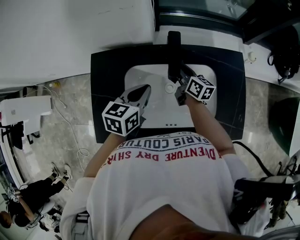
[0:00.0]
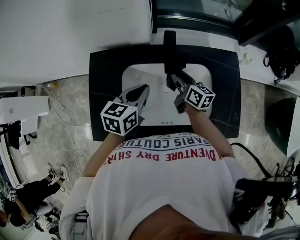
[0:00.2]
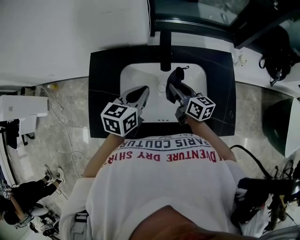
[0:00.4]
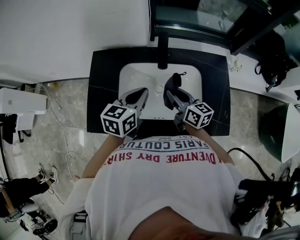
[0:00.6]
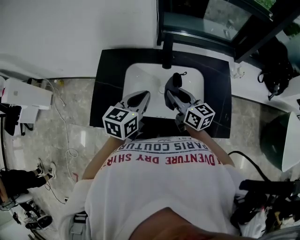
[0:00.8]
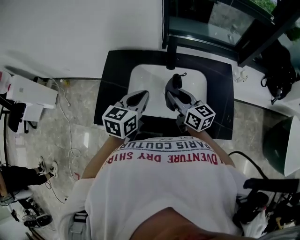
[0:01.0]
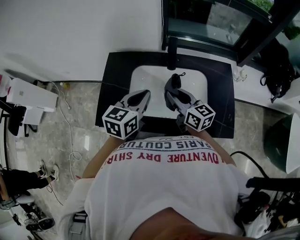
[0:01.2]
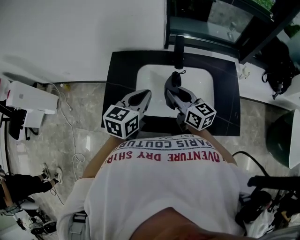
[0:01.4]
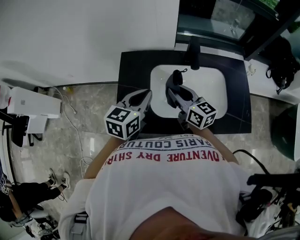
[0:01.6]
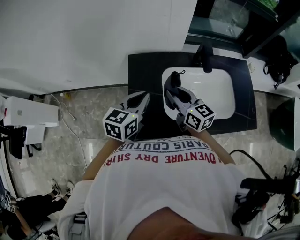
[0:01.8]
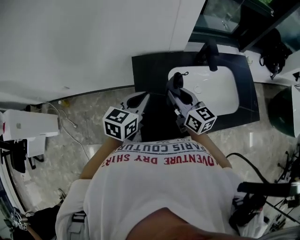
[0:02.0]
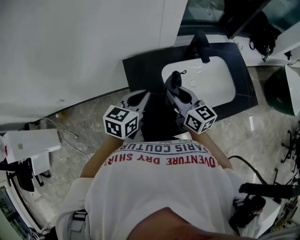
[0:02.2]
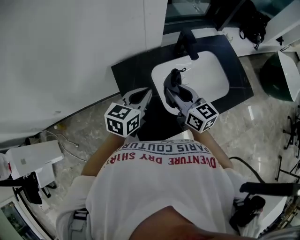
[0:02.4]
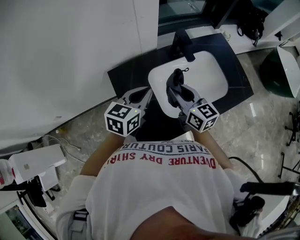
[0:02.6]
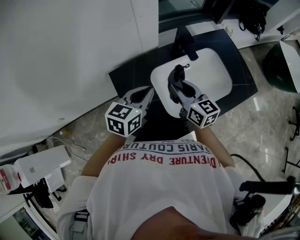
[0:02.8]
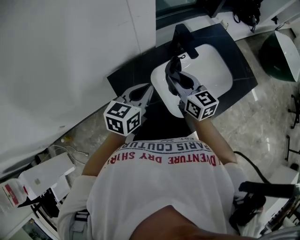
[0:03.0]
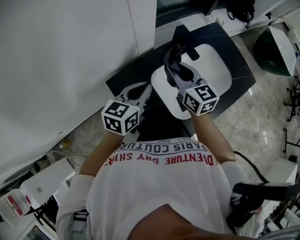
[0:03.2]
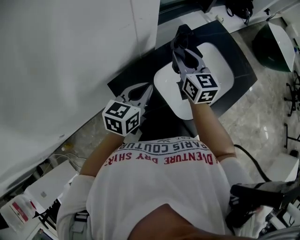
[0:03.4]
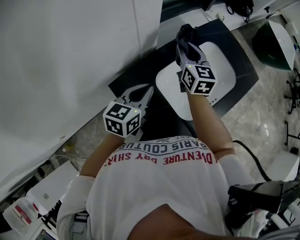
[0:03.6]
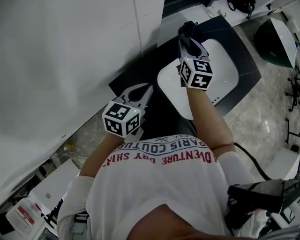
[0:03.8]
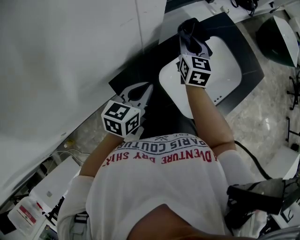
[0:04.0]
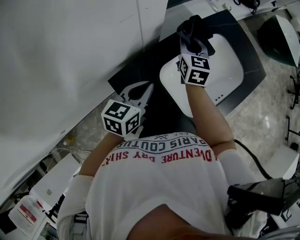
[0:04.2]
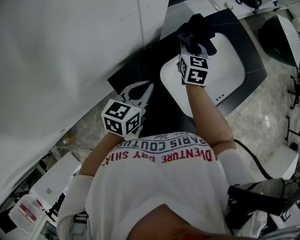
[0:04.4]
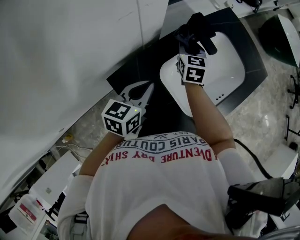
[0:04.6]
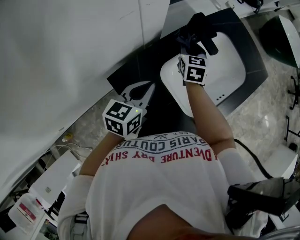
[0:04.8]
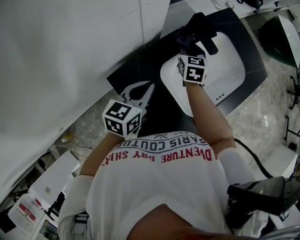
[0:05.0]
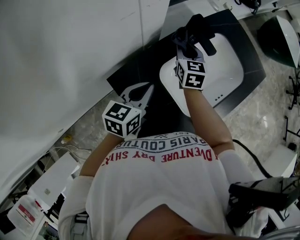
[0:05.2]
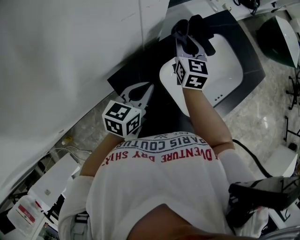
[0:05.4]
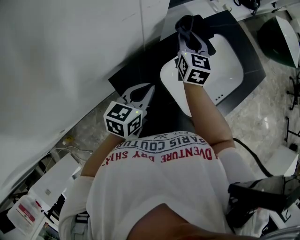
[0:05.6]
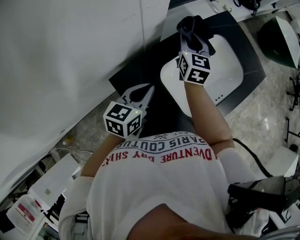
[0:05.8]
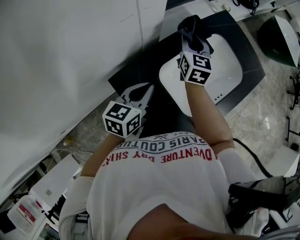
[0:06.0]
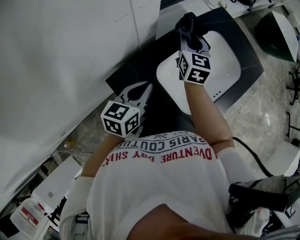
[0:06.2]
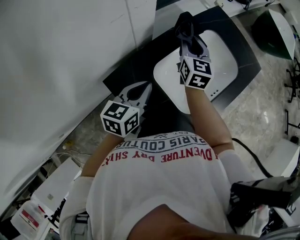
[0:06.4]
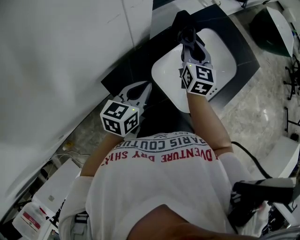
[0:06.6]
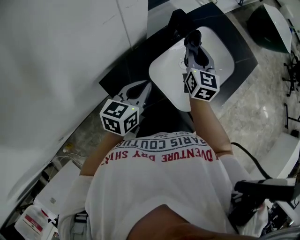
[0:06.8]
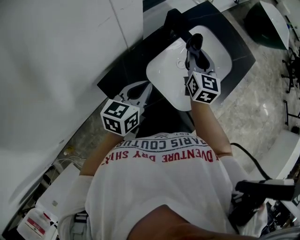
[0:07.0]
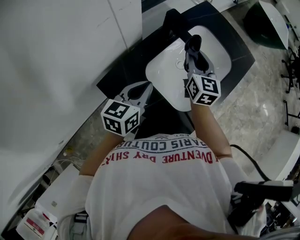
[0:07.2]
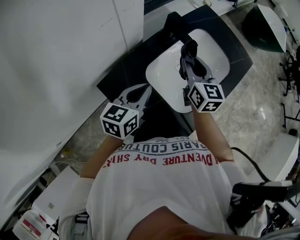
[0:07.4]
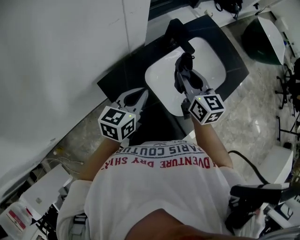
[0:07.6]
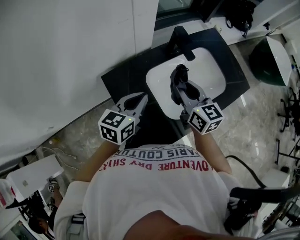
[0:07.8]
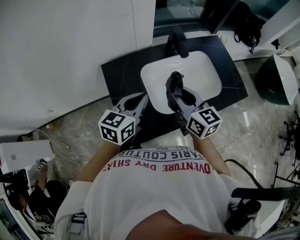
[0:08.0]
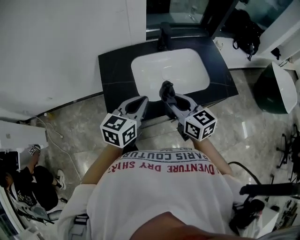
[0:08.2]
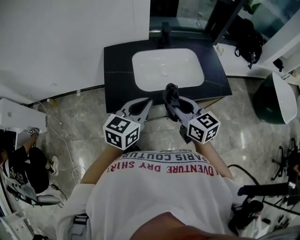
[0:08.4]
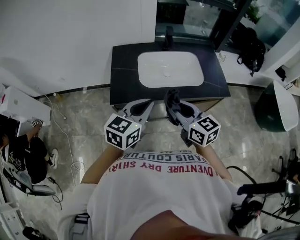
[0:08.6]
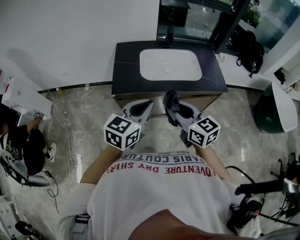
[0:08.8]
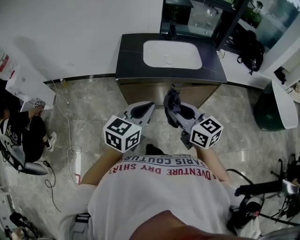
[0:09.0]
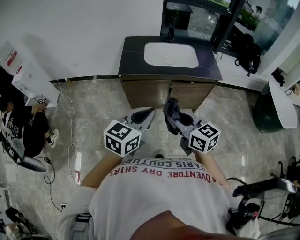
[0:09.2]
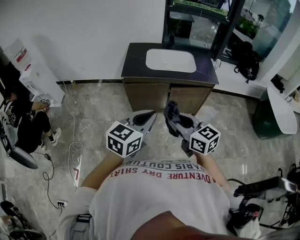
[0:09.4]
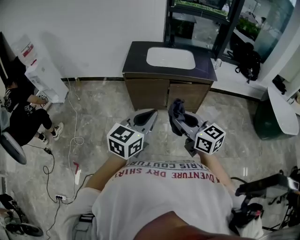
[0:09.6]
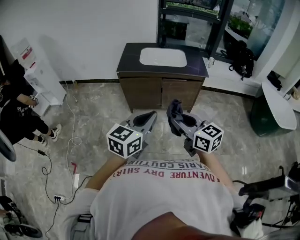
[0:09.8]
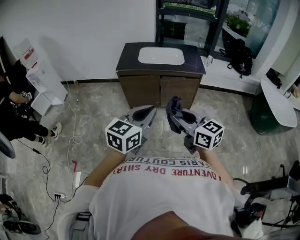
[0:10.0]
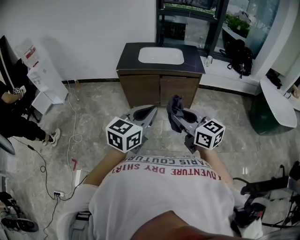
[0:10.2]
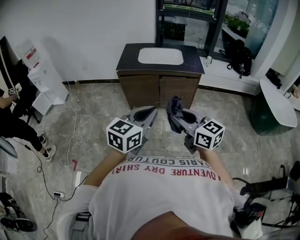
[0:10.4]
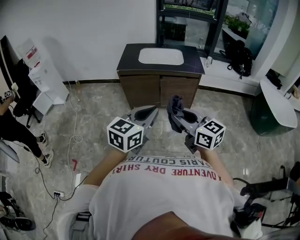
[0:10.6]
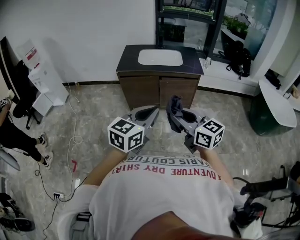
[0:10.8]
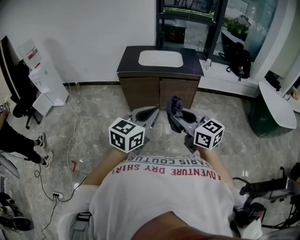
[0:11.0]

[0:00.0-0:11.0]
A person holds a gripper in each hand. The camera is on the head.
0:00.0 to 0:01.6: The left gripper goes some 20 cm to the left, backward and upward. Meanwhile the right gripper goes roughly 30 cm backward, to the left and upward, and swivels roughly 20 degrees.
0:01.6 to 0:03.2: The right gripper shifts by some 15 cm, and rotates some 40 degrees. Meanwhile the left gripper changes place by roughly 15 cm, and rotates about 40 degrees.
0:03.2 to 0:04.8: The right gripper moves downward and forward, about 20 cm, and rotates some 40 degrees. The left gripper goes about 5 cm downward.
0:04.8 to 0:06.2: The right gripper travels upward by roughly 10 cm.
0:06.2 to 0:07.8: The right gripper ends up some 20 cm from where it was, and swivels some 30 degrees, while the left gripper moves some 10 cm.
0:07.8 to 0:09.4: Both grippers are carried about 70 cm. The right gripper swivels some 50 degrees, while the left gripper turns by some 30 degrees.
0:09.4 to 0:11.0: The grippers both shift backward and to the right by approximately 20 cm.

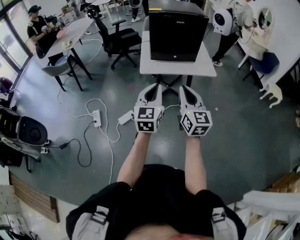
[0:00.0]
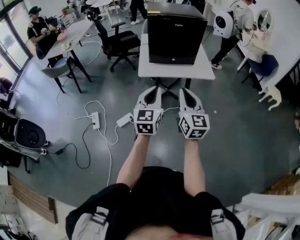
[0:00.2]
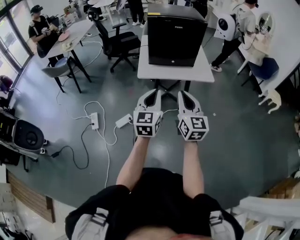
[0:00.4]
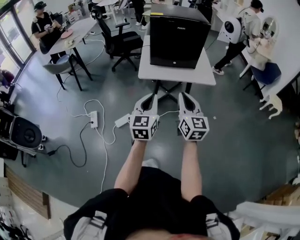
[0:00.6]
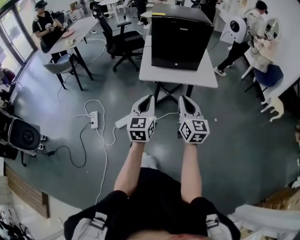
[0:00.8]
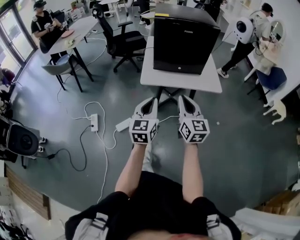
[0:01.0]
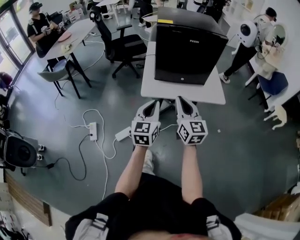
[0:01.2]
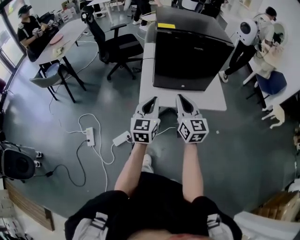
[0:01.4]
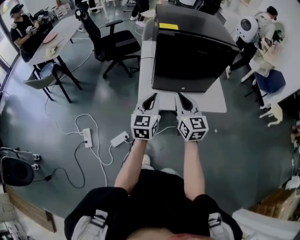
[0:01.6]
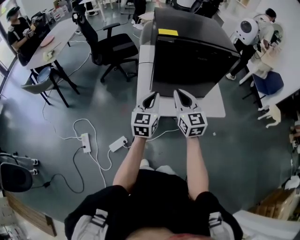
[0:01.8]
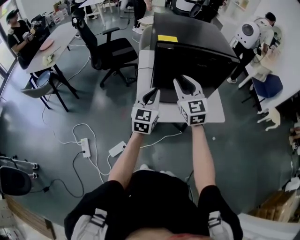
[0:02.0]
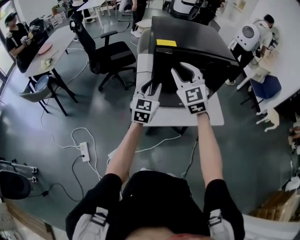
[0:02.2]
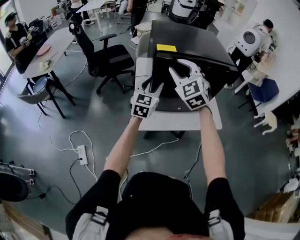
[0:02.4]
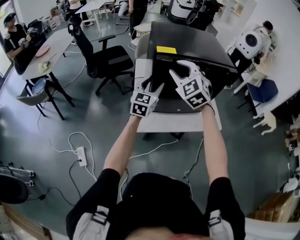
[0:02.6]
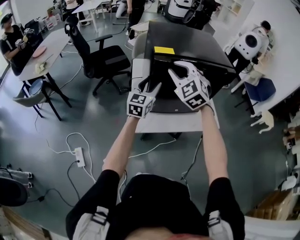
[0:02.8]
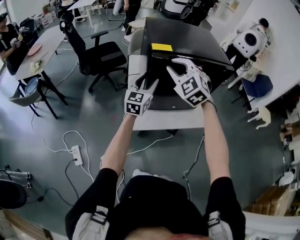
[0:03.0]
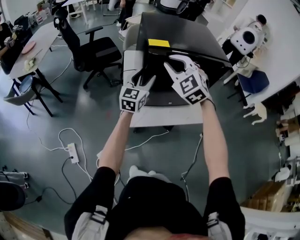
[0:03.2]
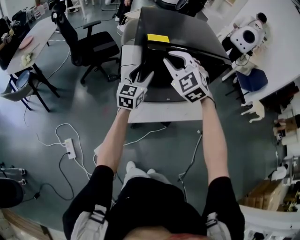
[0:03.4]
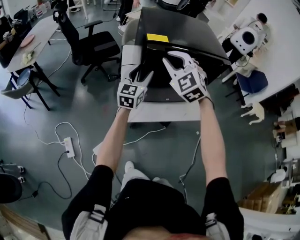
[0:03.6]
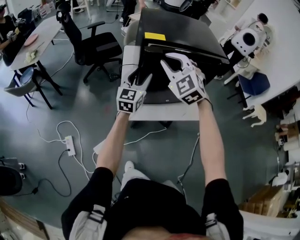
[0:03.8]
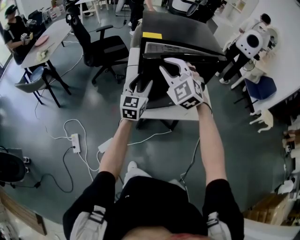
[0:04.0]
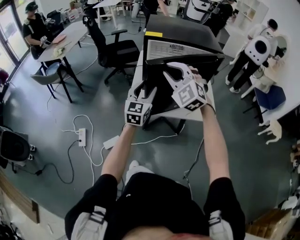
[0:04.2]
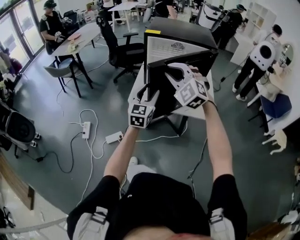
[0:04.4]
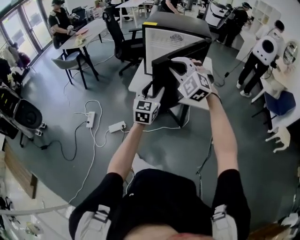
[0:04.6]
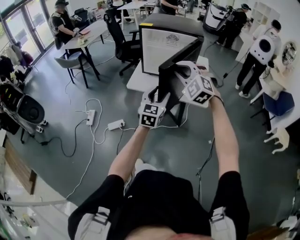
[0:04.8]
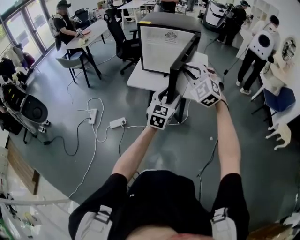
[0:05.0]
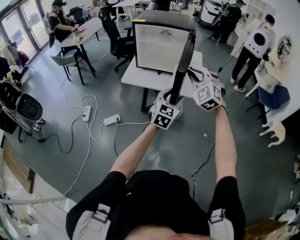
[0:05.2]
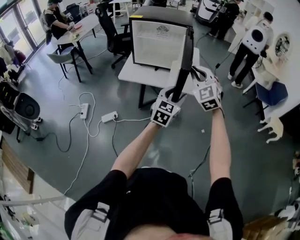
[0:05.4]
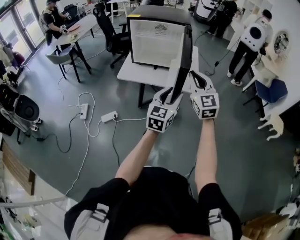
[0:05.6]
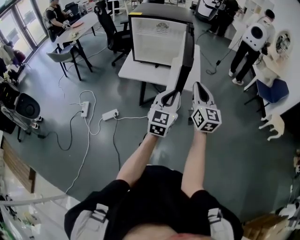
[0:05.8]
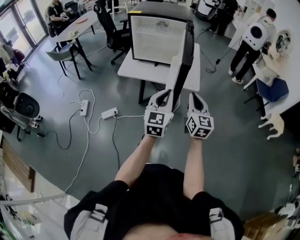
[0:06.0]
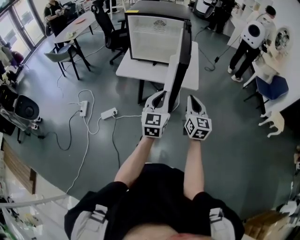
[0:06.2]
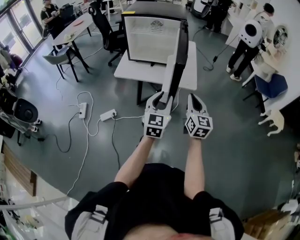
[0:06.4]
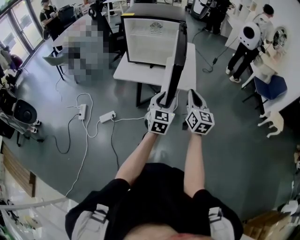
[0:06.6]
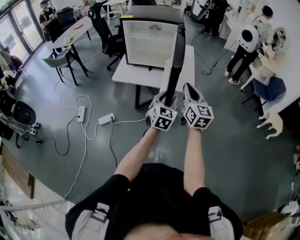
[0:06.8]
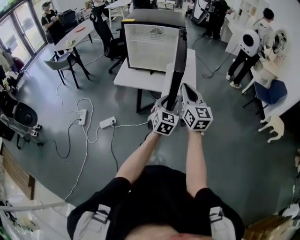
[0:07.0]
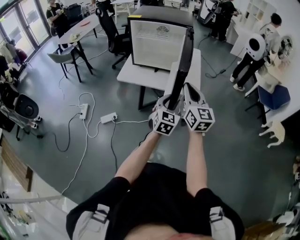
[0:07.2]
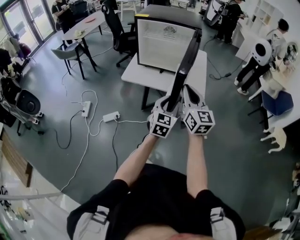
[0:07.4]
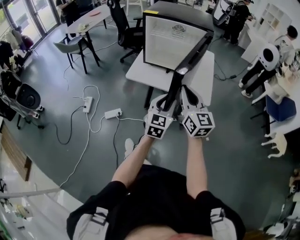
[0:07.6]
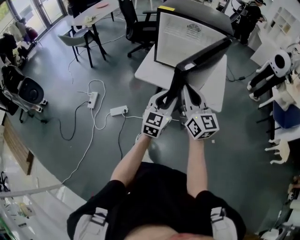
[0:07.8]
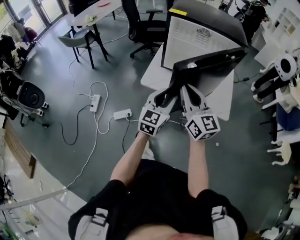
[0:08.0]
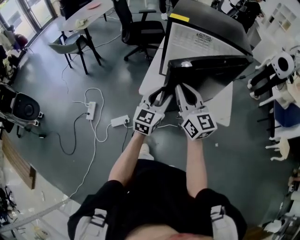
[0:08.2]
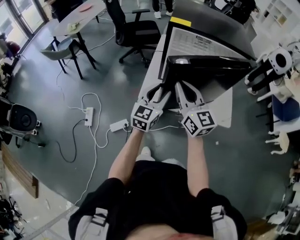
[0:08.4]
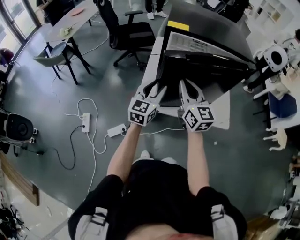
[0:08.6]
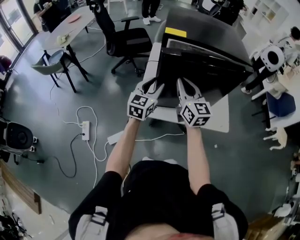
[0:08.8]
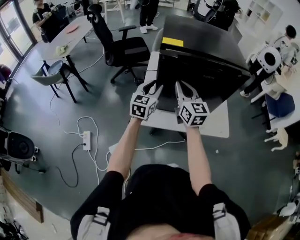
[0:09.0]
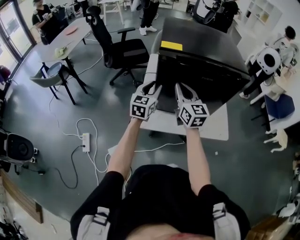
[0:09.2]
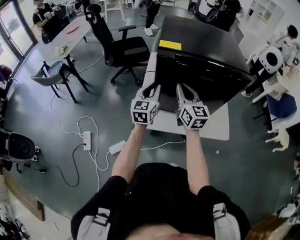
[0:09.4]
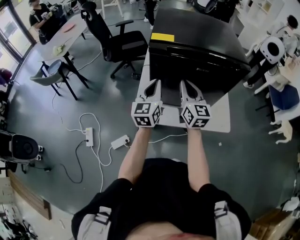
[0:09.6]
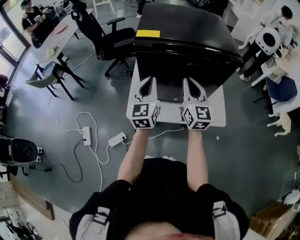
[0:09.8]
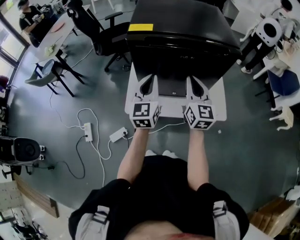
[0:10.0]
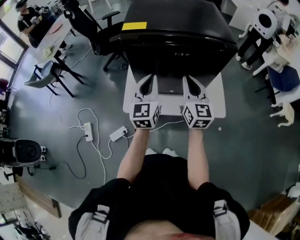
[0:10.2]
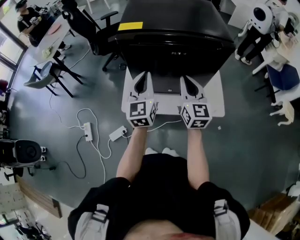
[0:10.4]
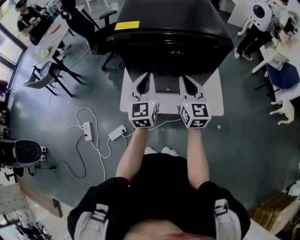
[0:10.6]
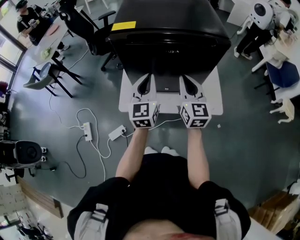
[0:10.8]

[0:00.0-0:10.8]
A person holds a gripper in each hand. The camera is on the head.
0:00.0 to 0:01.6: The grippers both shift forward by roughly 35 cm.
0:01.6 to 0:03.0: The right gripper moves forward and upward, some 20 cm, and twists about 50 degrees counterclockwise, seen from behind. The left gripper goes some 20 cm forward, and opens.
0:03.0 to 0:04.6: The grippers both shift backward and to the right by some 35 cm. The left gripper swivels some 20 degrees. Meanwhile the right gripper rotates about 30 degrees.
0:04.6 to 0:06.2: The left gripper goes approximately 20 cm backward and to the right, and closes, while the right gripper is displaced to the right, backward and downward by about 30 cm, and rolls clockwise, seen from behind, by roughly 70 degrees.
0:06.2 to 0:07.8: The right gripper goes approximately 25 cm to the left and forward, and rotates roughly 30 degrees. Meanwhile the left gripper moves forward, to the left and downward, approximately 20 cm, and opens up.
0:07.8 to 0:09.2: The left gripper travels forward and to the left by approximately 40 cm. Meanwhile the right gripper moves forward, roughly 35 cm.
0:09.2 to 0:10.8: The left gripper travels to the right, backward and upward by approximately 15 cm, and closes its fingers. The right gripper shifts roughly 15 cm to the right.

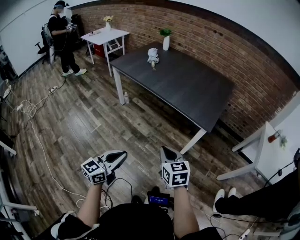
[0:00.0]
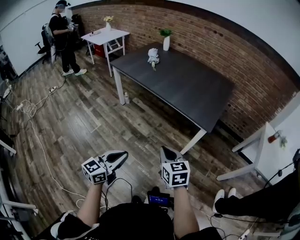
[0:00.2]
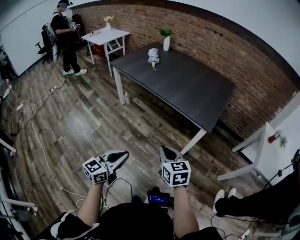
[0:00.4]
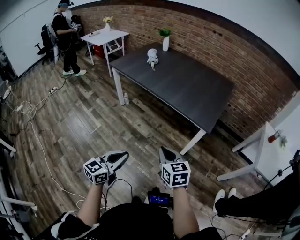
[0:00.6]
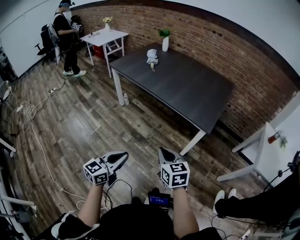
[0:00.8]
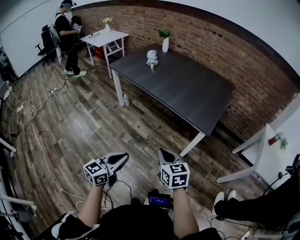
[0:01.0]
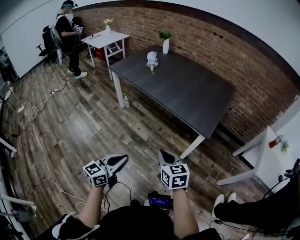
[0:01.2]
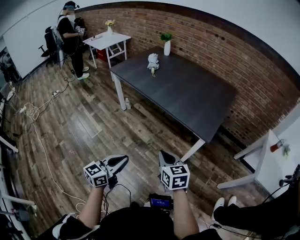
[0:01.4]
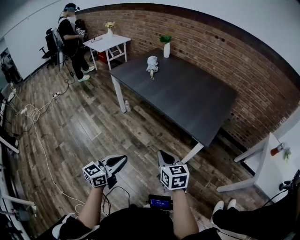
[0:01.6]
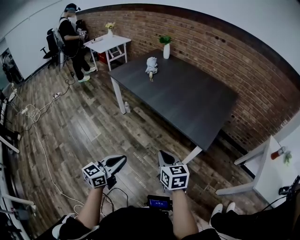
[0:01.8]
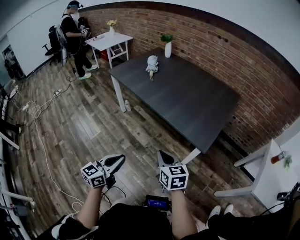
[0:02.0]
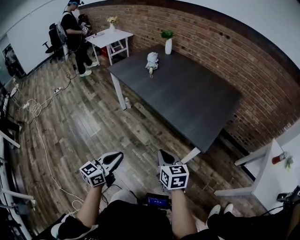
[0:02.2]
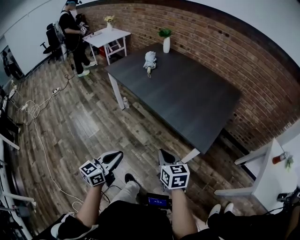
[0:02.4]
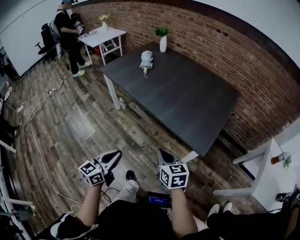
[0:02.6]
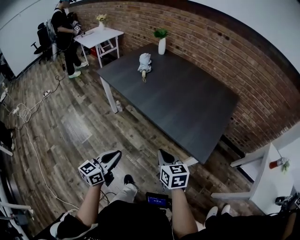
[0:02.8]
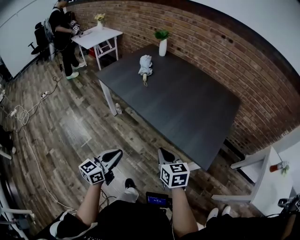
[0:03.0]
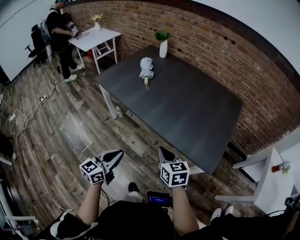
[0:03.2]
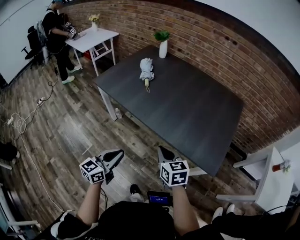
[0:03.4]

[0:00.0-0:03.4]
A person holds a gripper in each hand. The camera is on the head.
0:00.0 to 0:01.6: The two grippers go roughly 10 cm forward.
0:01.6 to 0:03.4: Both grippers travel together forward, approximately 30 cm.
